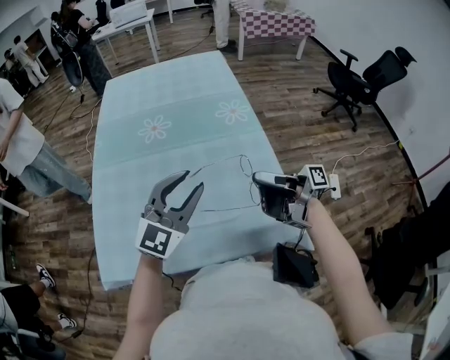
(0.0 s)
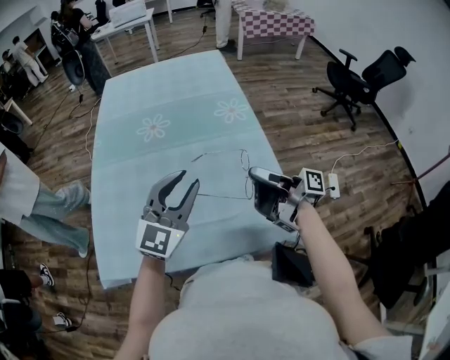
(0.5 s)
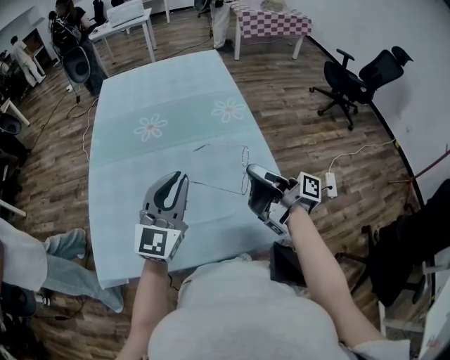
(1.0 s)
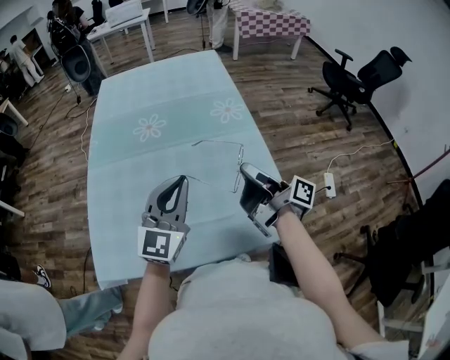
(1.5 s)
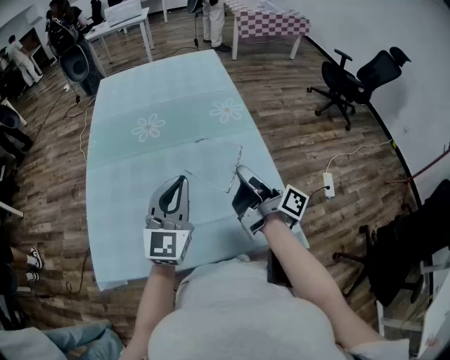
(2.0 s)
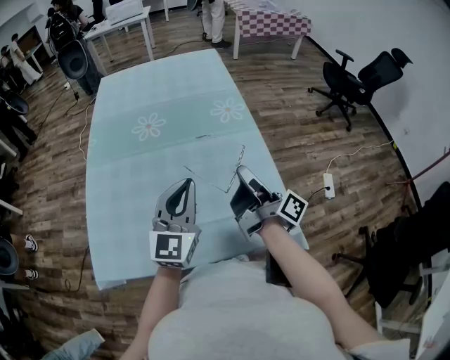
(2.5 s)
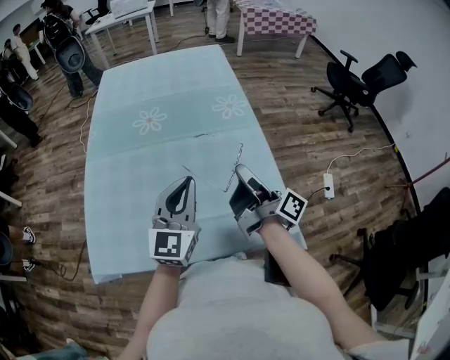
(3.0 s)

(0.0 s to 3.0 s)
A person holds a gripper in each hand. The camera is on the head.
0.0 s - 1.5 s: The left gripper closes.

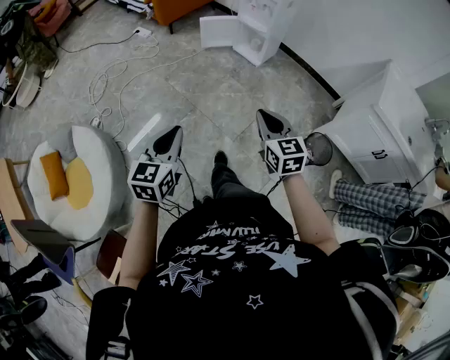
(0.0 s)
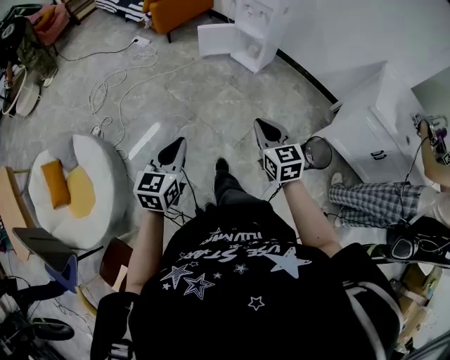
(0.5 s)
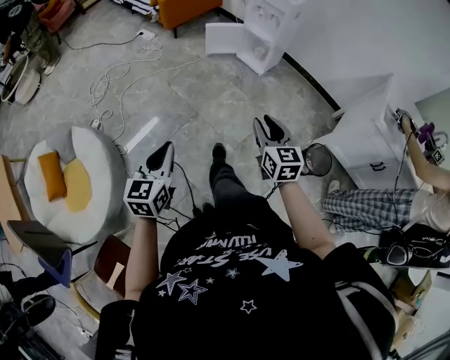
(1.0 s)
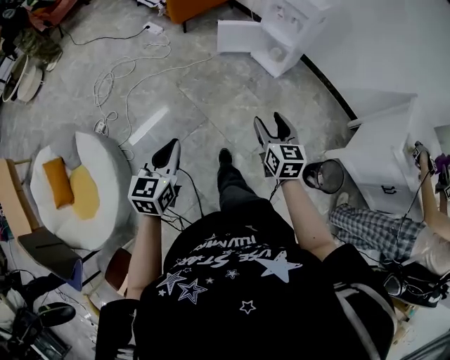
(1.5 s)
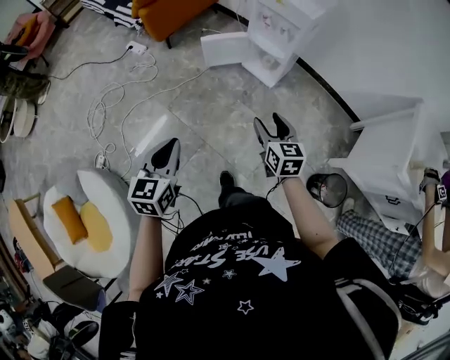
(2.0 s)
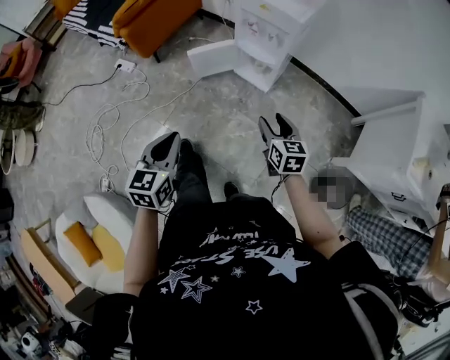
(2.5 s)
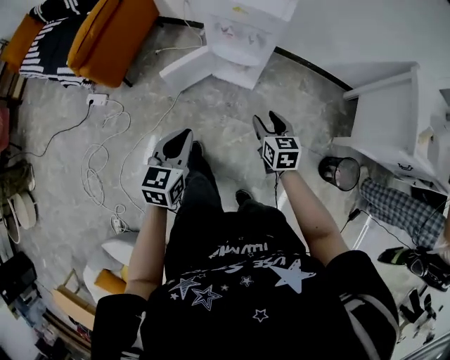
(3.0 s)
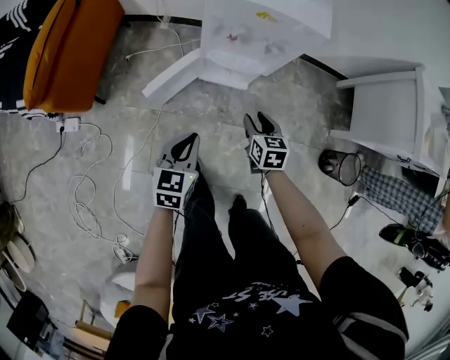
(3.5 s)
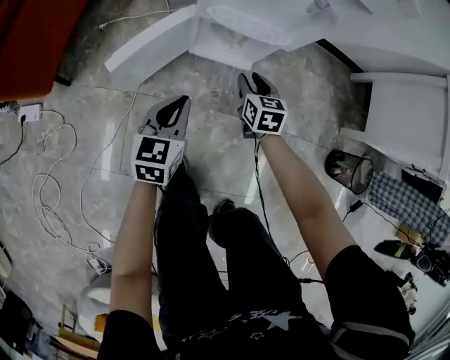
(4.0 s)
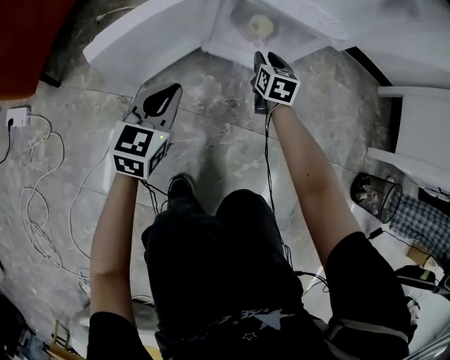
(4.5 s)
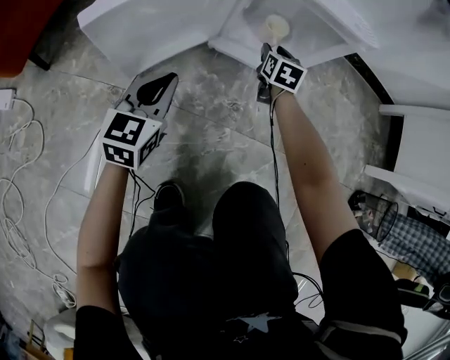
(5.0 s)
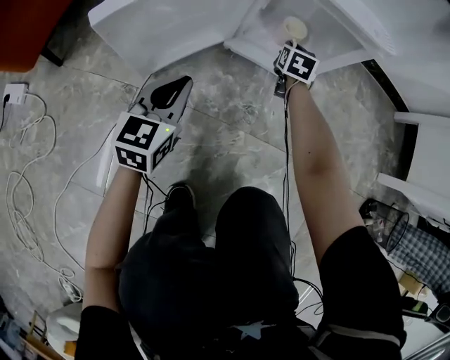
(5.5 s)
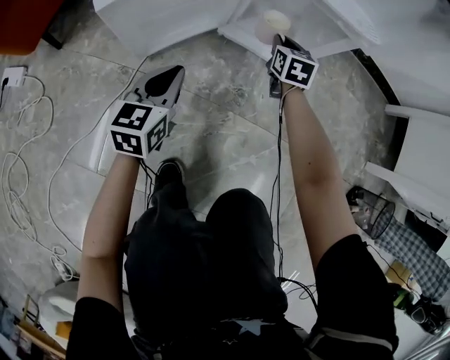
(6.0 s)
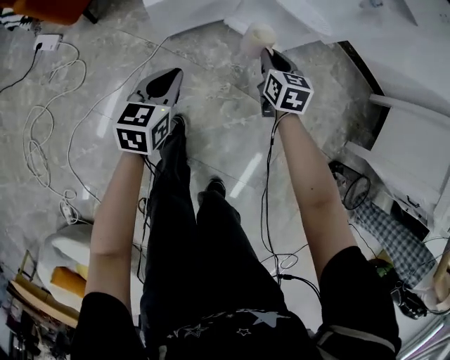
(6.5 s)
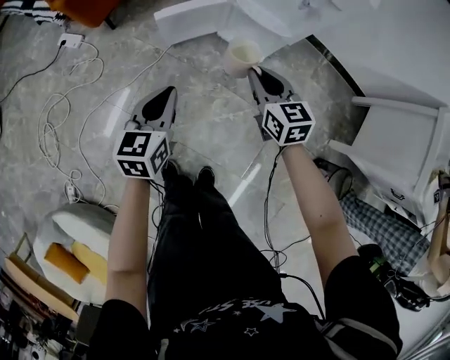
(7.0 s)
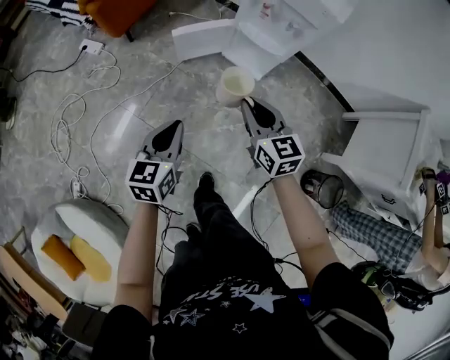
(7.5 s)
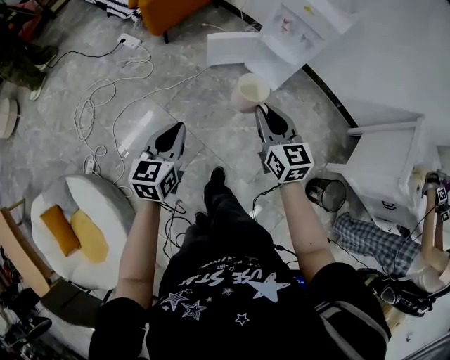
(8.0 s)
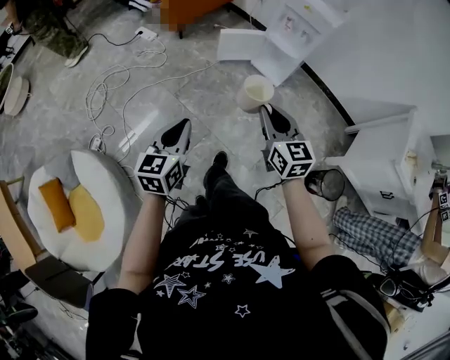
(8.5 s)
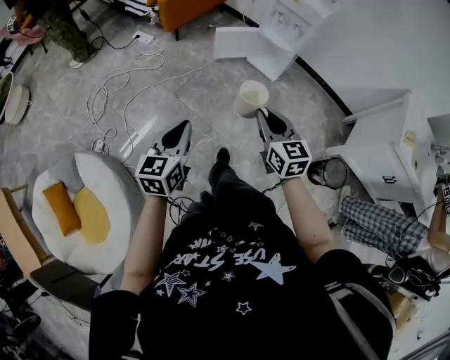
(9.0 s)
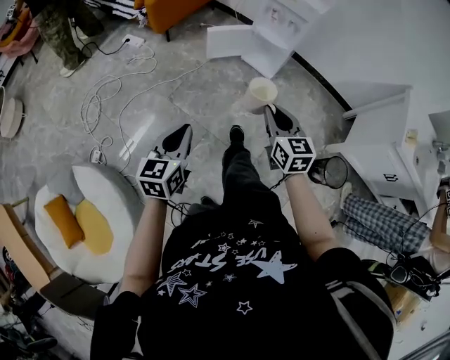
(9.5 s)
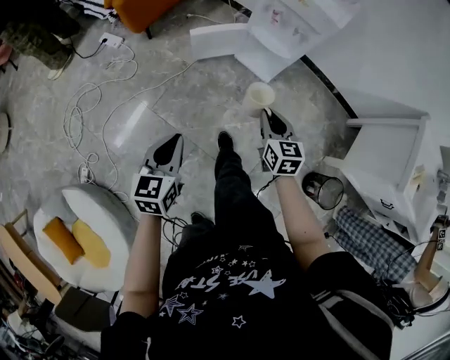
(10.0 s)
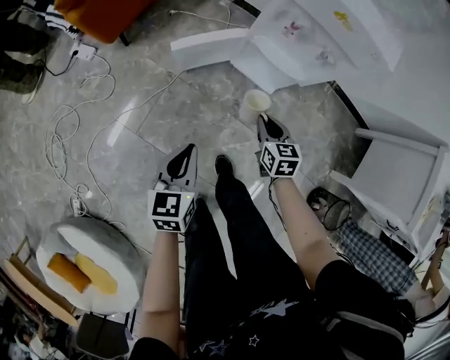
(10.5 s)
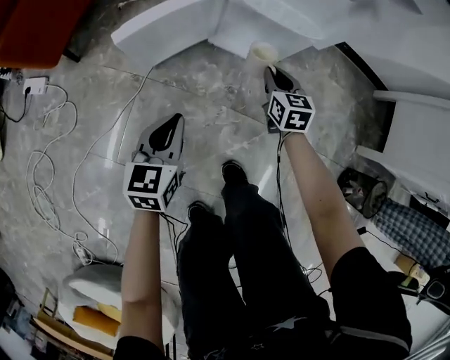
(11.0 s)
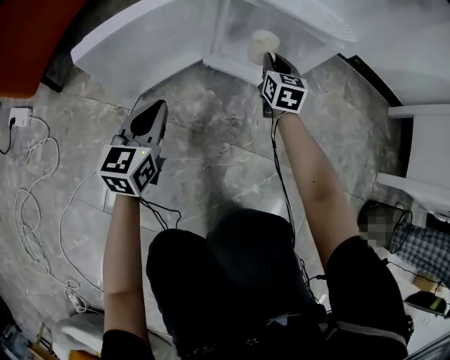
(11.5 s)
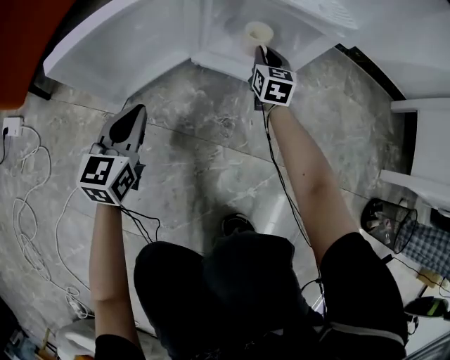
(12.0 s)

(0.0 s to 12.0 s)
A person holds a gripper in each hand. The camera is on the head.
0.0 s - 2.0 s: Both grippers travel together forward, roughly 35 cm. The right gripper opens its fingers.
2.0 s - 4.0 s: Both grippers are carried about 50 cm. The left gripper swivels roughly 40 degrees, while the right gripper goes about 40 cm downward, swivels approximately 40 degrees, and closes its fingers.
4.0 s - 6.0 s: The left gripper heads downward, covering approximately 20 cm. Meanwhile the right gripper is displaced downward and forward by about 25 cm, and closes its fingers.
6.0 s - 8.0 s: Both grippers are carried approximately 50 cm. Both grippers move upward, approximately 60 cm. The right gripper rotates roughly 40 degrees, while the left gripper changes its angle by approximately 30 degrees.
8.0 s - 10.0 s: The left gripper travels to the right by about 5 cm, and goes backward and returns, some 20 cm each way, while the right gripper shifts approximately 15 cm downward and to the right, and reaches roughly 20 cm backward, then returns.
10.0 s - 12.0 s: The pair of grippers is taken forward, about 40 cm. Both grippers move downward, approximately 50 cm. The left gripper rotates some 20 degrees, while the right gripper changes its angle by about 30 degrees.

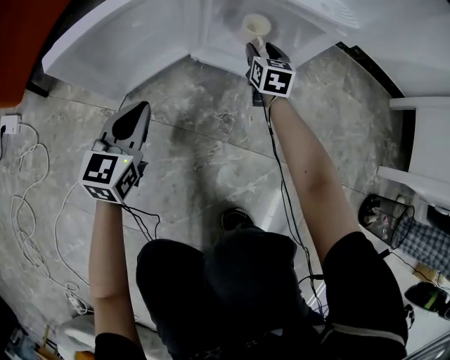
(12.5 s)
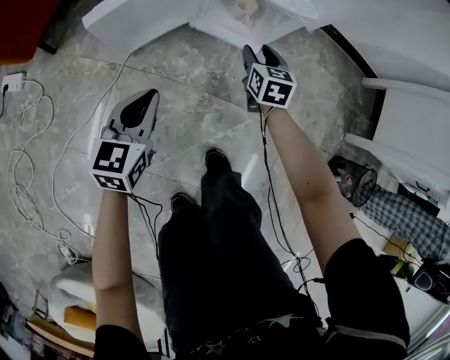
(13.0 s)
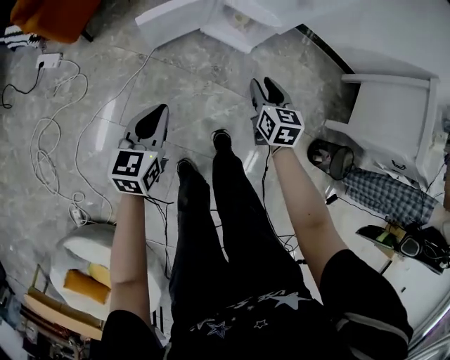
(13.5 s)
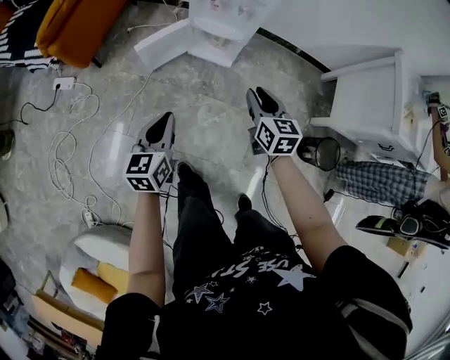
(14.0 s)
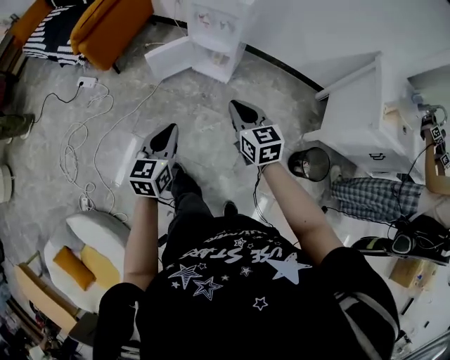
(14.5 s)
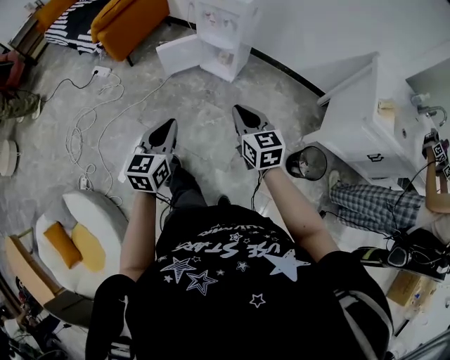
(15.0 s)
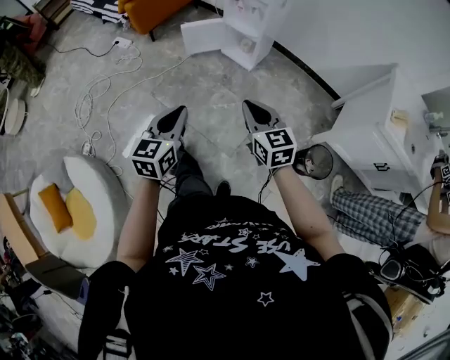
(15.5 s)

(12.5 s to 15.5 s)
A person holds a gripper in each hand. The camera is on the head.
12.5 s - 14.0 s: Both grippers move upward and backward, approximately 60 cm. The right gripper closes.
14.0 s - 15.5 s: The left gripper goes about 35 cm backward, to the right and upward, while the right gripper travels backward and upward by some 30 cm, rotates about 30 degrees, and closes.

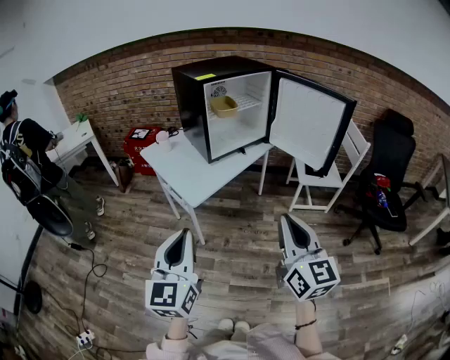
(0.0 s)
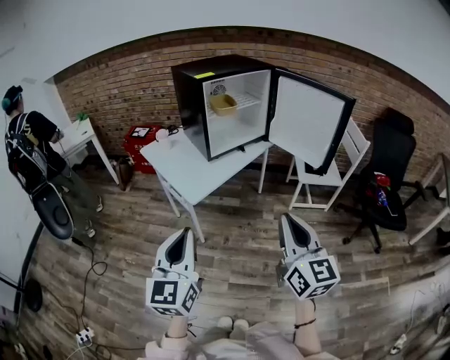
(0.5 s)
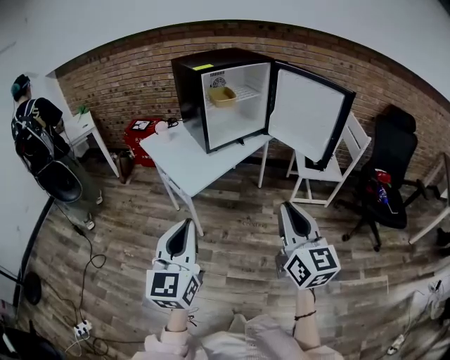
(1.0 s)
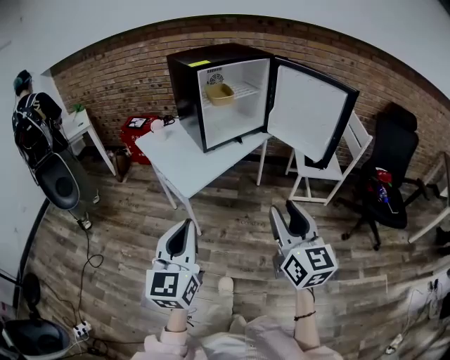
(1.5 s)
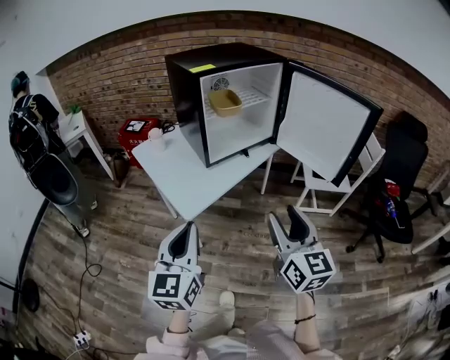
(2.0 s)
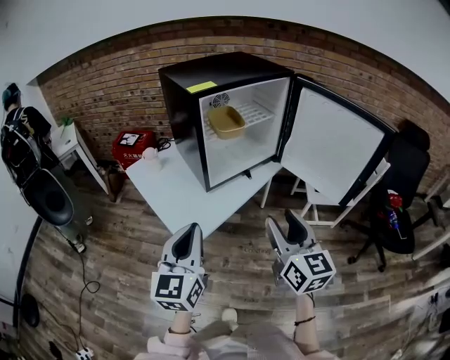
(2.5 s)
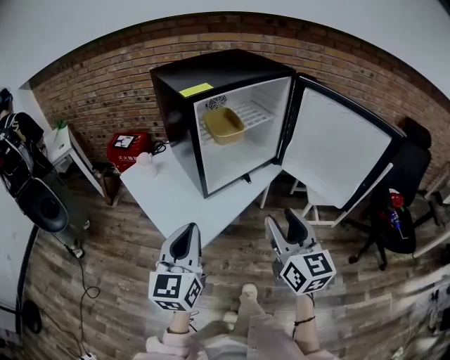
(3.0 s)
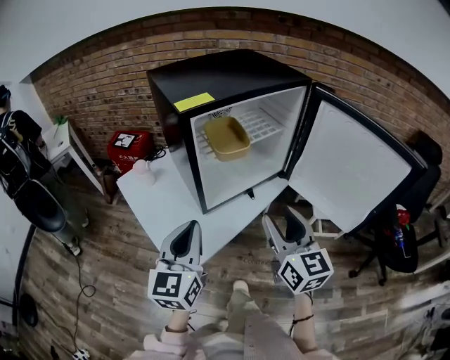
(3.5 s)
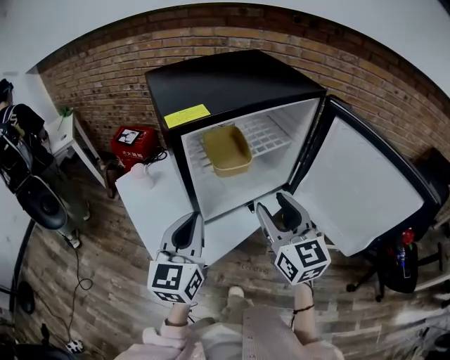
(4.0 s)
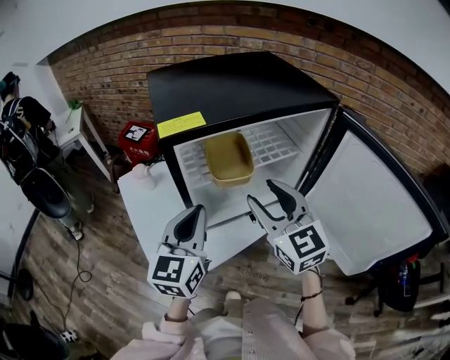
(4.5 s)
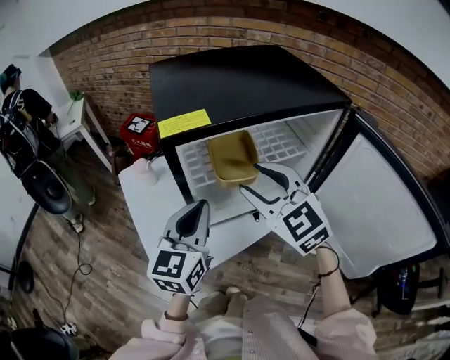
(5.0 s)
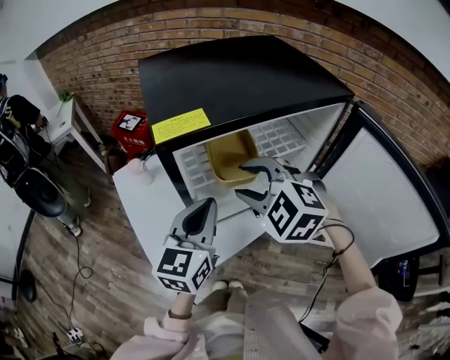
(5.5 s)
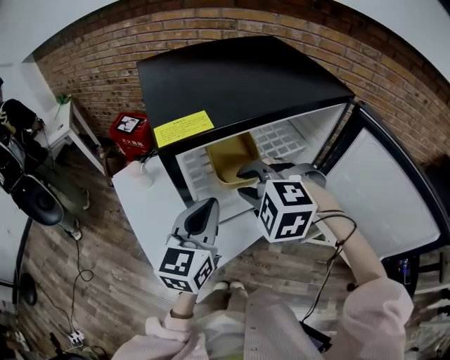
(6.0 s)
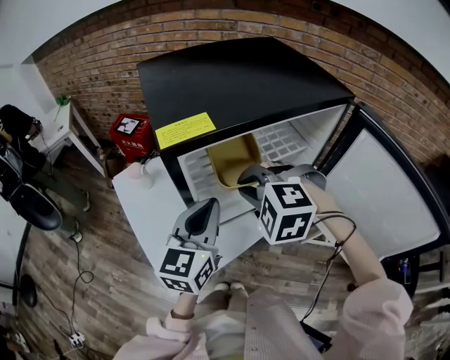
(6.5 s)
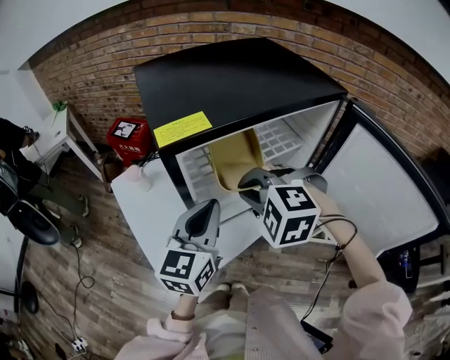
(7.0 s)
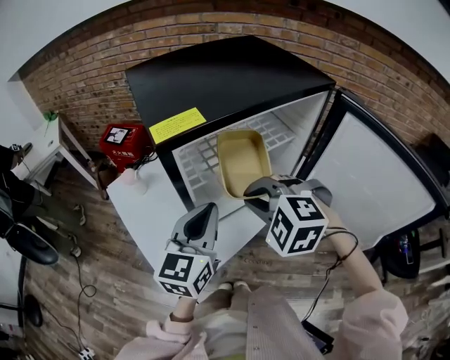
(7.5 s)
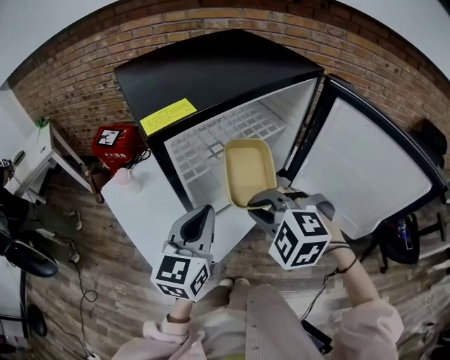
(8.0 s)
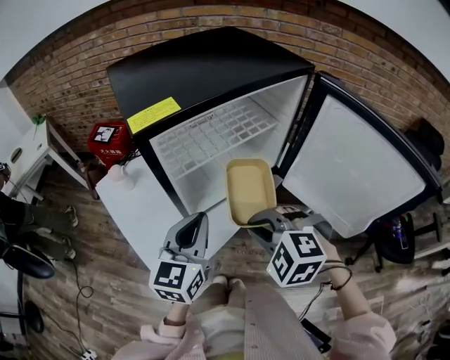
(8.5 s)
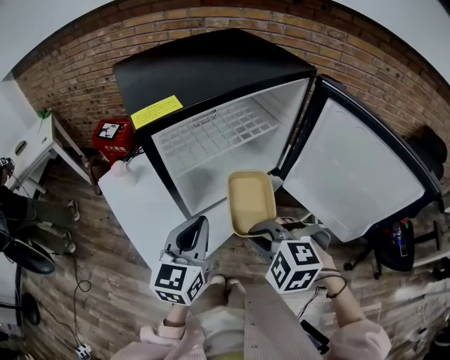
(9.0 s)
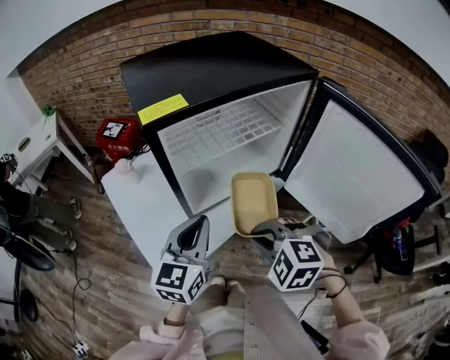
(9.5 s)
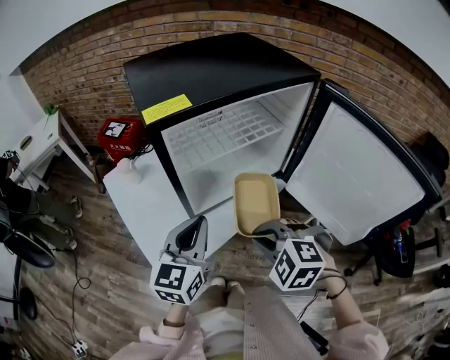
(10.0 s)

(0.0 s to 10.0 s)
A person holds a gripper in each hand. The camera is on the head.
0.0 s - 2.0 s: The two grippers go approximately 15 cm forward. The right gripper opens up.
2.0 s - 4.0 s: The two grippers go approximately 35 cm forward.
4.0 s - 6.0 s: The left gripper moves forward, some 10 cm, while the right gripper shifts about 15 cm forward and to the left, and angles its fingers downward, by approximately 50 degrees.
6.0 s - 8.0 s: The left gripper ends up approximately 5 cm from where it was, while the right gripper is displaced backward by roughly 10 cm, and closes.
8.0 s - 10.0 s: The right gripper moves backward, roughly 5 cm.
